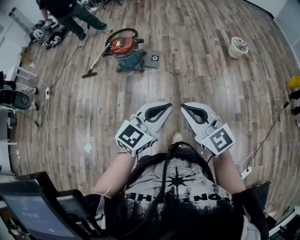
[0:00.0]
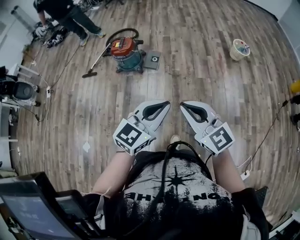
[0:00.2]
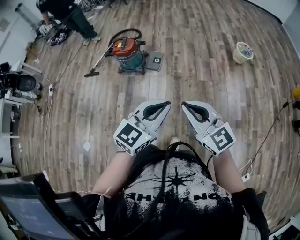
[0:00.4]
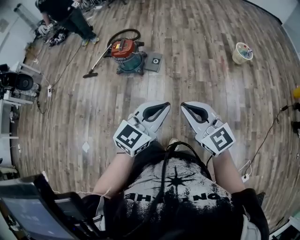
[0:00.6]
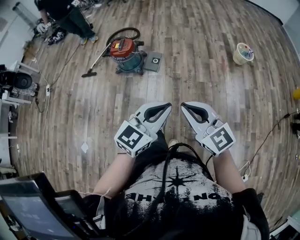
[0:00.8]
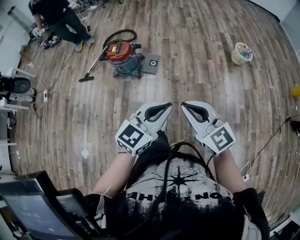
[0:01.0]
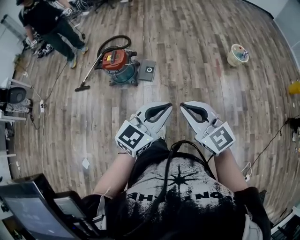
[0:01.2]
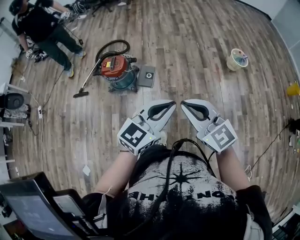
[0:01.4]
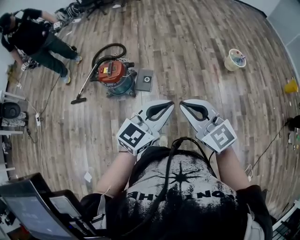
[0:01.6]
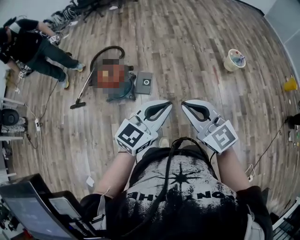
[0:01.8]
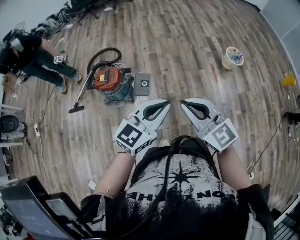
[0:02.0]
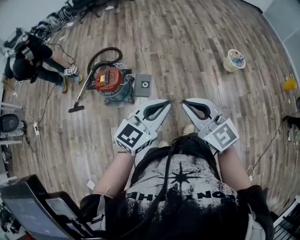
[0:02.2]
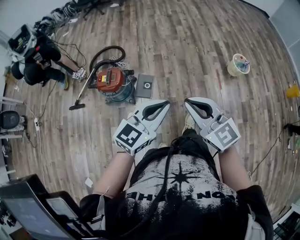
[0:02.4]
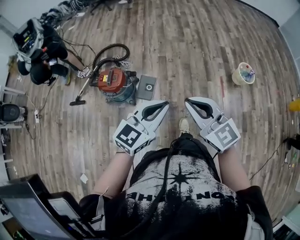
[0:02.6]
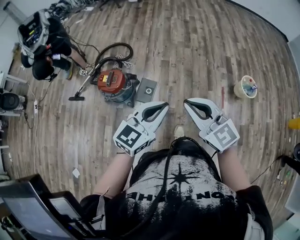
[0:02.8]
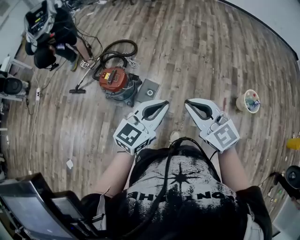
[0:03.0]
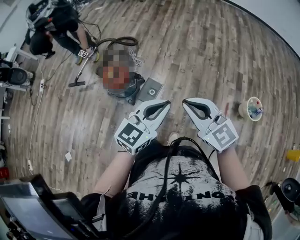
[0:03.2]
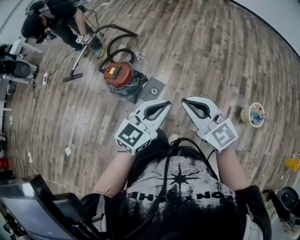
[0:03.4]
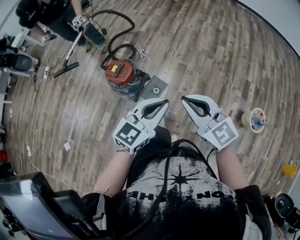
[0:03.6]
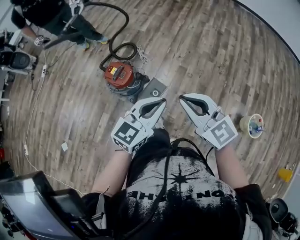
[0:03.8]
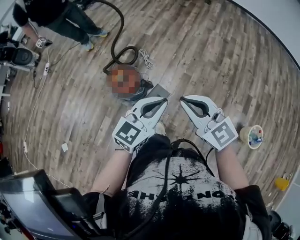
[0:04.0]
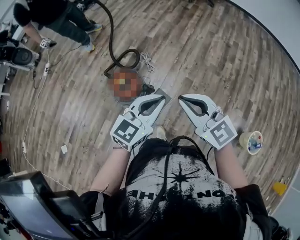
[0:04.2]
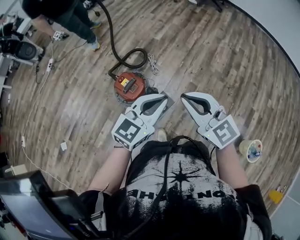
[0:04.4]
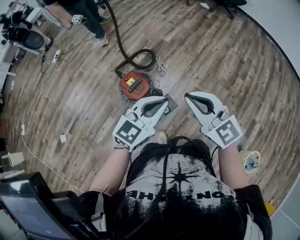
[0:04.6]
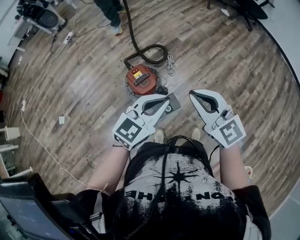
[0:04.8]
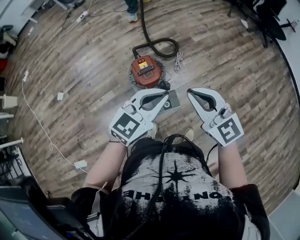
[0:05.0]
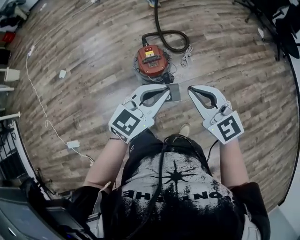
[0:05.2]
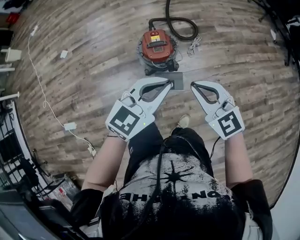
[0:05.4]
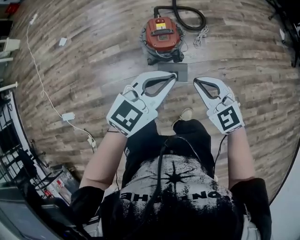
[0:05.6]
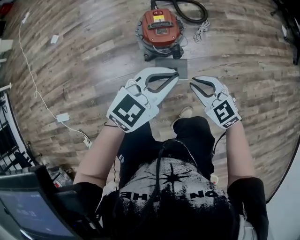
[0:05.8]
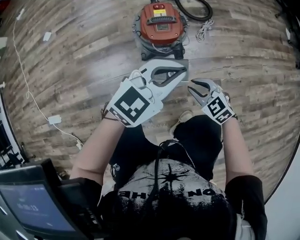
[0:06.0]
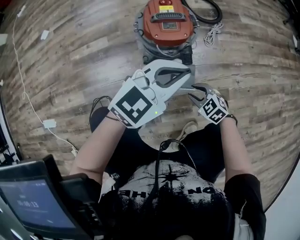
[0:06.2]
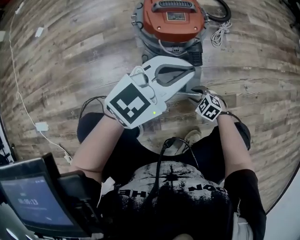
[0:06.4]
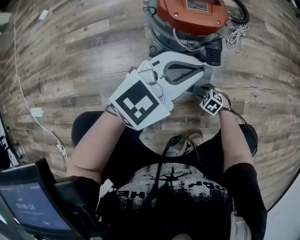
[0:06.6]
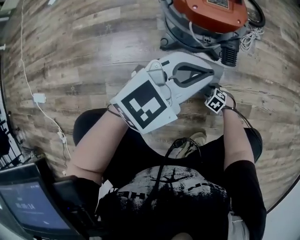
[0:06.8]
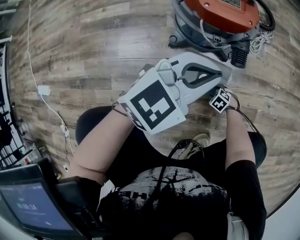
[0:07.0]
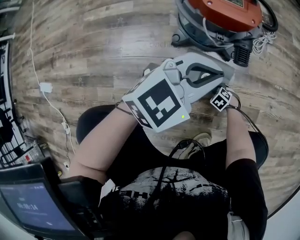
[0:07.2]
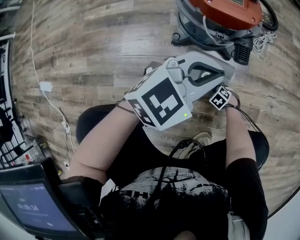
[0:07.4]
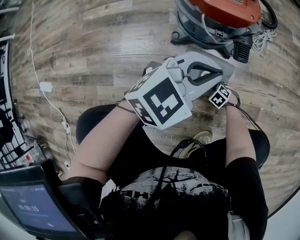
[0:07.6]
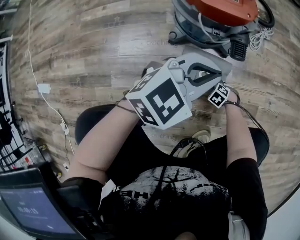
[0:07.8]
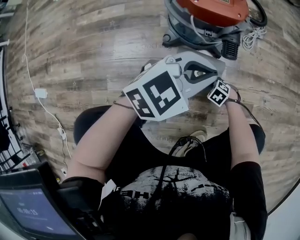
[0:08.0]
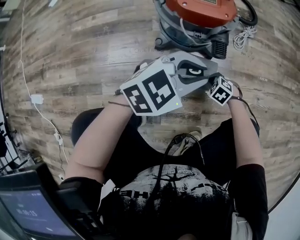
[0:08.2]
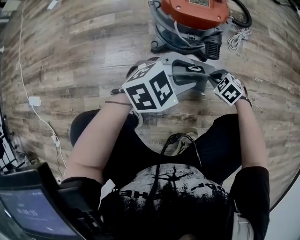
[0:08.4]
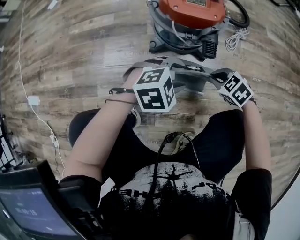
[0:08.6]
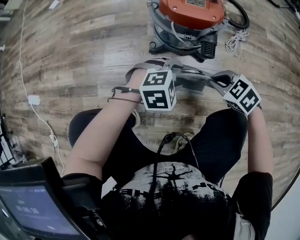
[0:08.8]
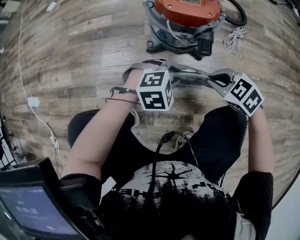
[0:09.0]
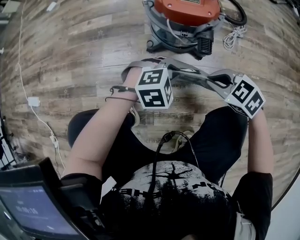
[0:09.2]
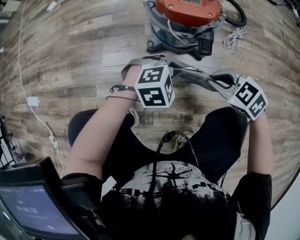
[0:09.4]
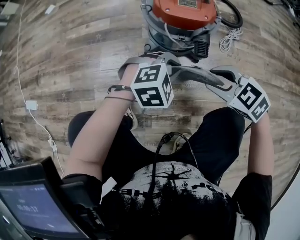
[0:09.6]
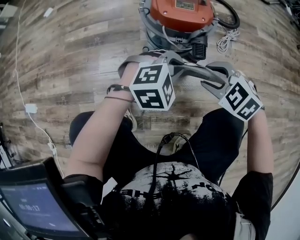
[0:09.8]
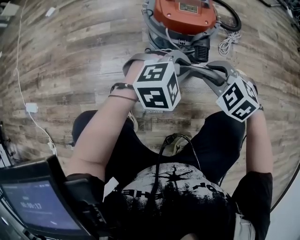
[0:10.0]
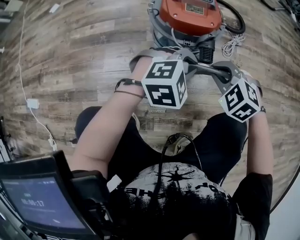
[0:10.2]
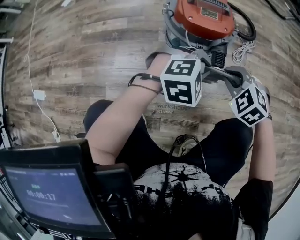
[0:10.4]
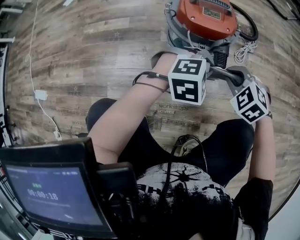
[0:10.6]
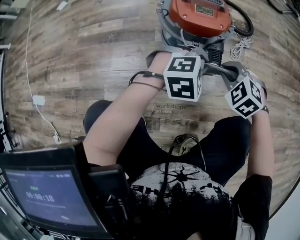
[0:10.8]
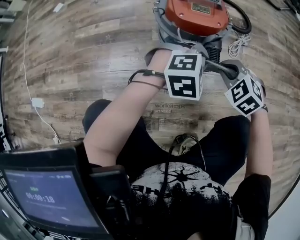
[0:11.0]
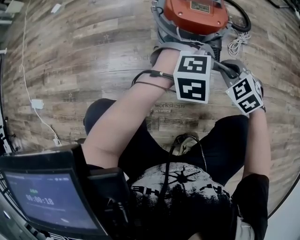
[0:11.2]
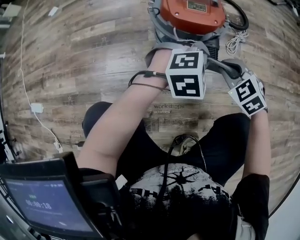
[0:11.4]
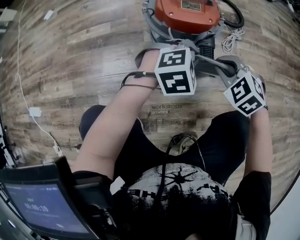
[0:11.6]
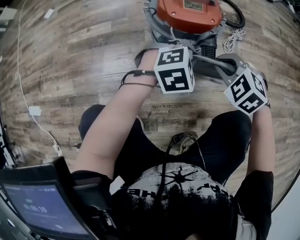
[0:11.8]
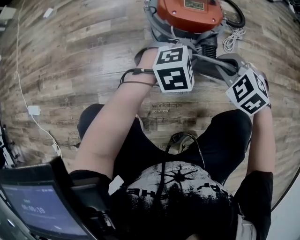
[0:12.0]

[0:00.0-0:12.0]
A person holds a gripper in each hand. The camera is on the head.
0:00.0 to 0:01.6: Both grippers move forward, approximately 30 cm.
0:01.6 to 0:03.0: Both grippers move forward, roughly 30 cm. The left gripper swivels some 20 degrees.
0:03.0 to 0:04.4: The grippers both shift forward by some 30 cm. The right gripper changes its angle by some 20 degrees.
0:04.4 to 0:06.0: The left gripper travels downward by some 25 cm, and swivels approximately 30 degrees. The right gripper heads downward, covering approximately 50 cm, points its fingers some 40 degrees further downward, and opens up.
0:06.0 to 0:07.6: The right gripper moves downward, approximately 50 cm, tilts its fingers roughly 40 degrees downward, and opens, then closes again. The left gripper travels downward by about 30 cm.
0:07.6 to 0:09.0: The left gripper shifts approximately 15 cm downward, tilts its fingers approximately 30 degrees downward, and opens, while the right gripper is displaced upward by about 35 cm, and turns by some 30 degrees.
0:09.0 to 0:10.4: The right gripper shifts by about 5 cm, swivels roughly 30 degrees, and opens and closes again; the left gripper heads upward, covering some 10 cm.
0:10.4 to 0:12.0: The left gripper ends up roughly 5 cm from where it was.

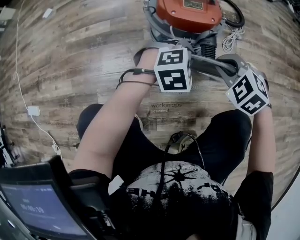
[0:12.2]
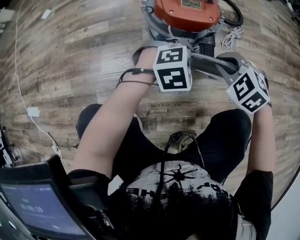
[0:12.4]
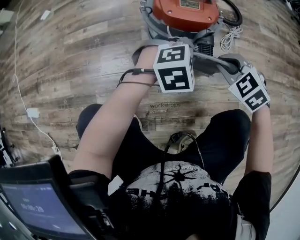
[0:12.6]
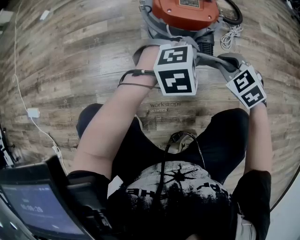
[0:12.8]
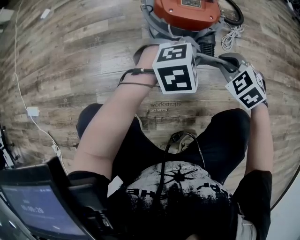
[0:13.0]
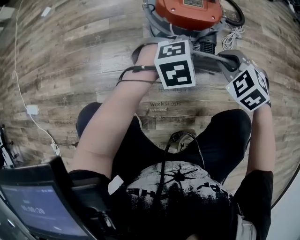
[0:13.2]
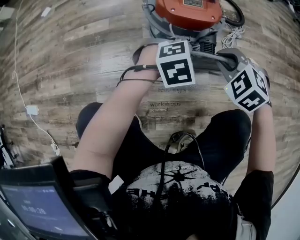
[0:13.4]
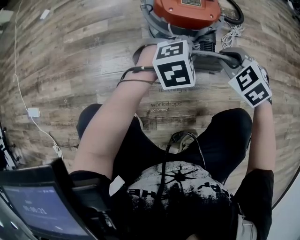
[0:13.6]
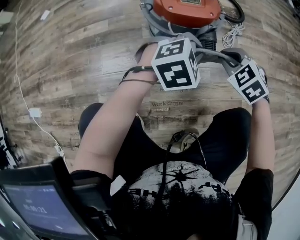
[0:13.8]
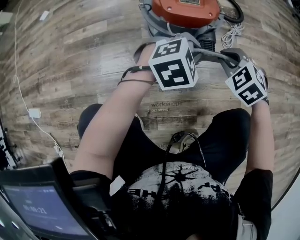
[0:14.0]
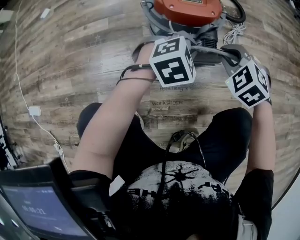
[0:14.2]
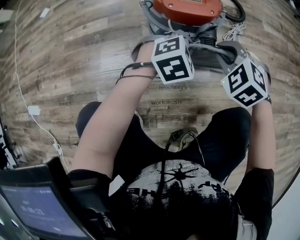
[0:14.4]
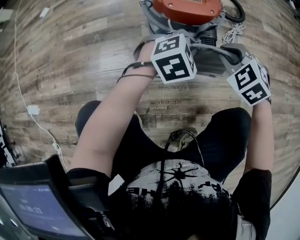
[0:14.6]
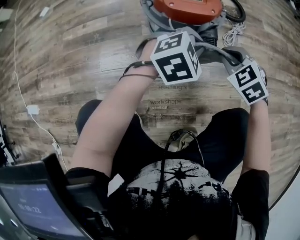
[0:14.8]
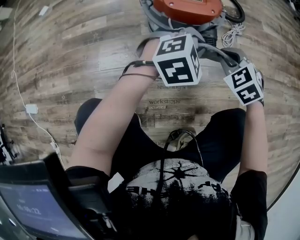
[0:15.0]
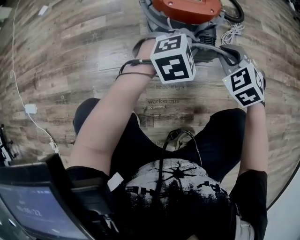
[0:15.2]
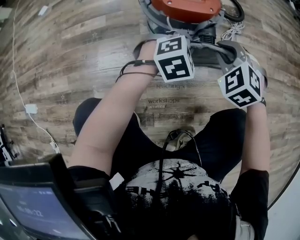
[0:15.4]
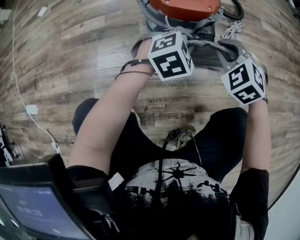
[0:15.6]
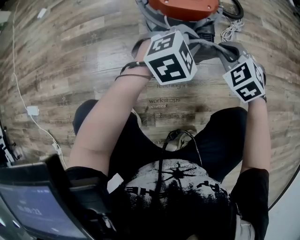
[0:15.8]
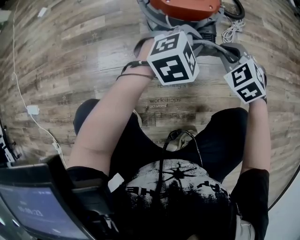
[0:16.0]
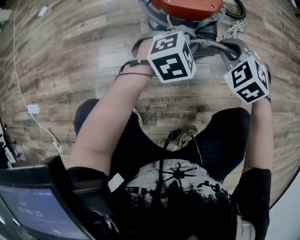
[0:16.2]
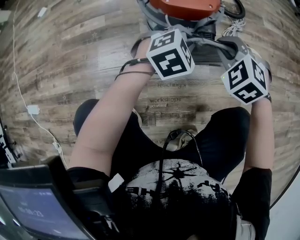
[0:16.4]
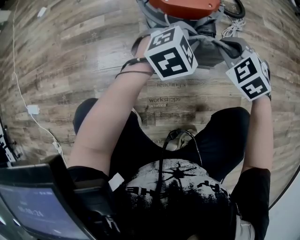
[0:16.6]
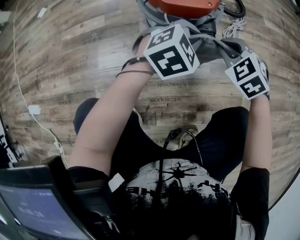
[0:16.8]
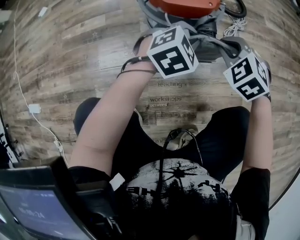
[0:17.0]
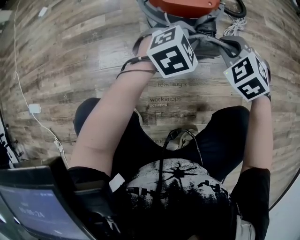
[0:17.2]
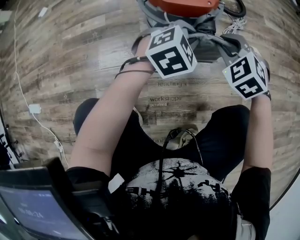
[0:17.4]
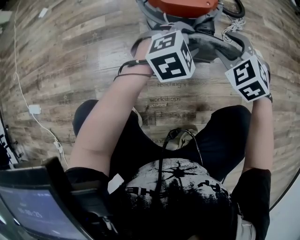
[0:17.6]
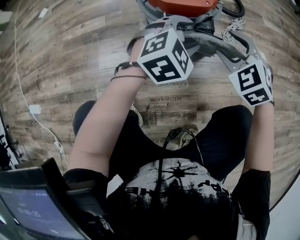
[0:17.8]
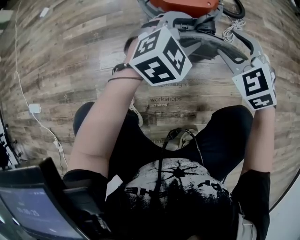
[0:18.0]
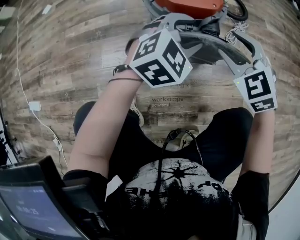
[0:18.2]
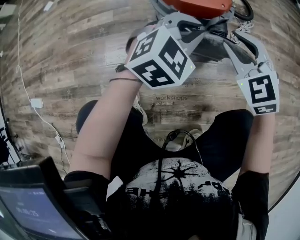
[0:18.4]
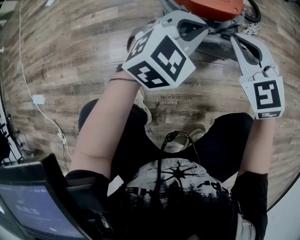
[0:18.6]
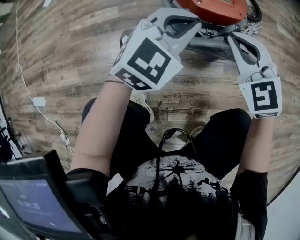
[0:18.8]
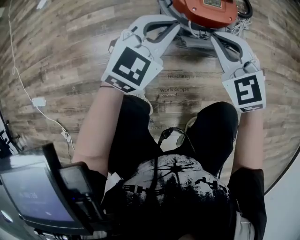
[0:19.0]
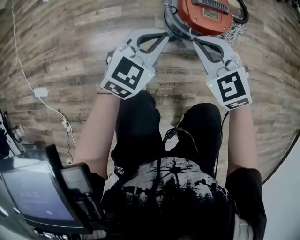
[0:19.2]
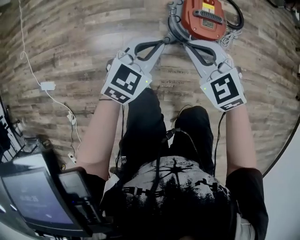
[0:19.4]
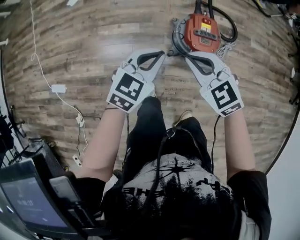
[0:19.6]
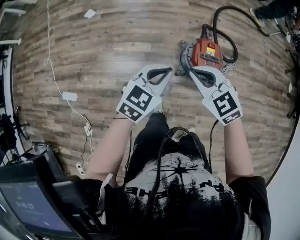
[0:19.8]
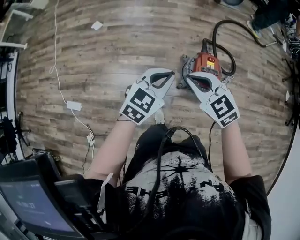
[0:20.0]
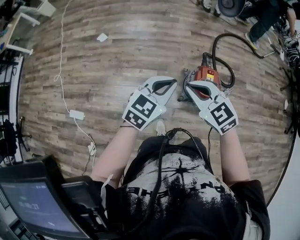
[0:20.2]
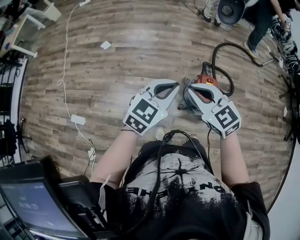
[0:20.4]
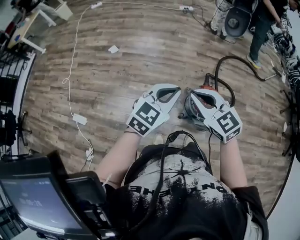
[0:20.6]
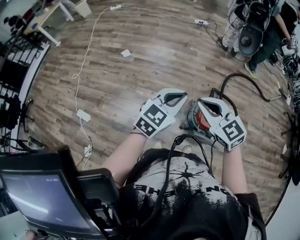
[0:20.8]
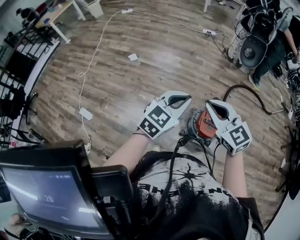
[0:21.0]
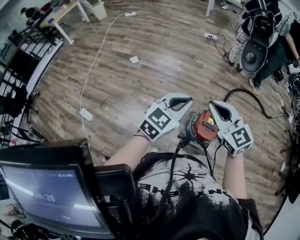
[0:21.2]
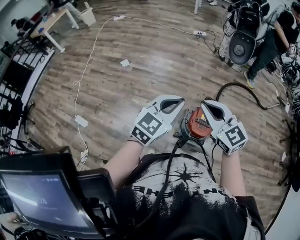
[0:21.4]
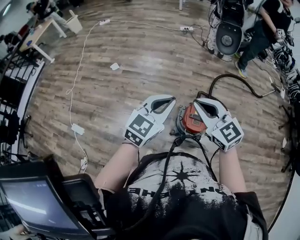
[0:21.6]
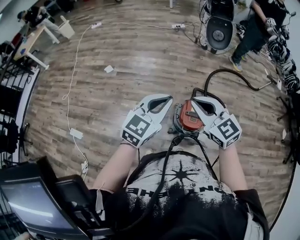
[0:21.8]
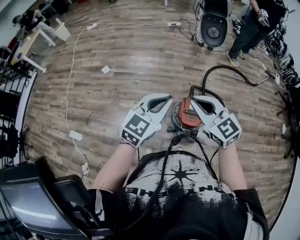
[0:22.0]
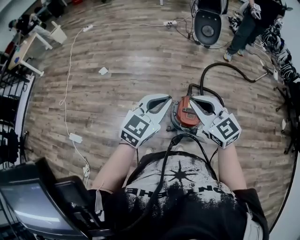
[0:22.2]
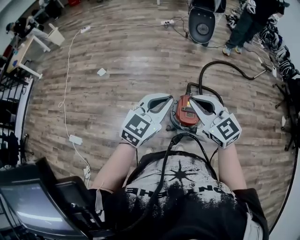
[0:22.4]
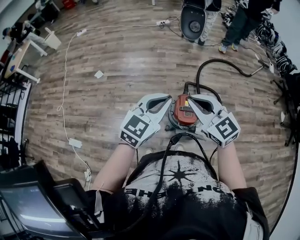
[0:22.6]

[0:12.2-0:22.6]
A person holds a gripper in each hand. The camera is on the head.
0:12.2 to 0:16.6: The grippers make only small movements.
0:16.6 to 0:18.2: Both grippers travel together upward, approximately 5 cm. The left gripper opens. The right gripper opens its fingers.
0:18.2 to 0:19.6: The two grippers go roughly 40 cm upward and to the left. The right gripper changes its angle by approximately 20 degrees, and closes its fingers. Meanwhile the left gripper turns by about 30 degrees, and closes.
0:19.6 to 0:21.2: The two grippers go about 25 cm upward. The right gripper changes its angle by roughly 30 degrees. The left gripper swivels about 20 degrees.
0:21.2 to 0:22.6: The grippers both shift to the right by about 10 cm.

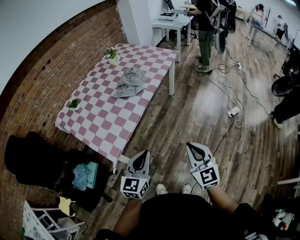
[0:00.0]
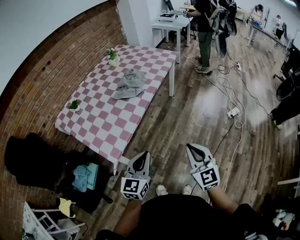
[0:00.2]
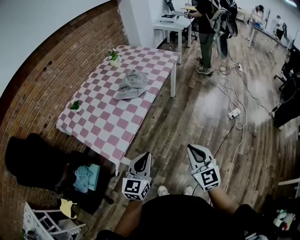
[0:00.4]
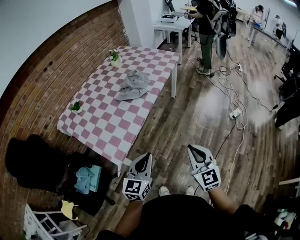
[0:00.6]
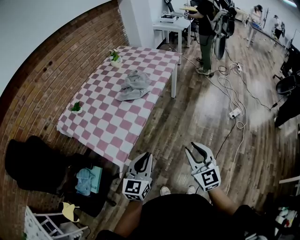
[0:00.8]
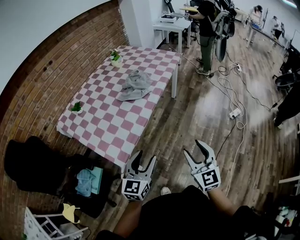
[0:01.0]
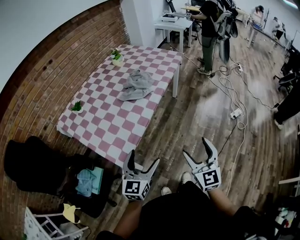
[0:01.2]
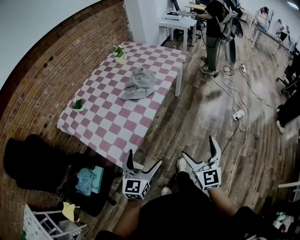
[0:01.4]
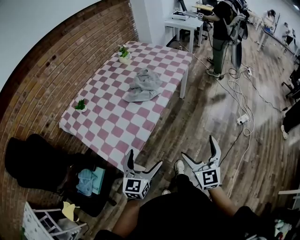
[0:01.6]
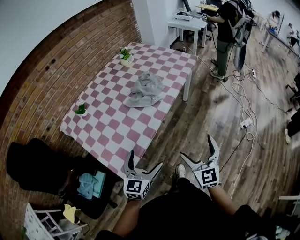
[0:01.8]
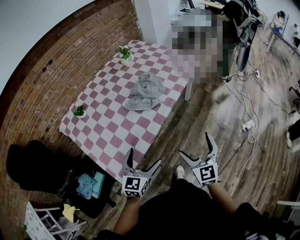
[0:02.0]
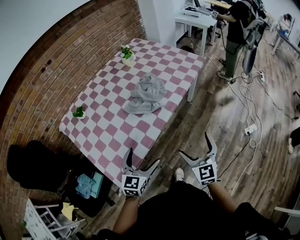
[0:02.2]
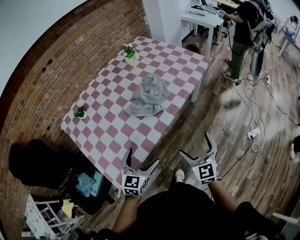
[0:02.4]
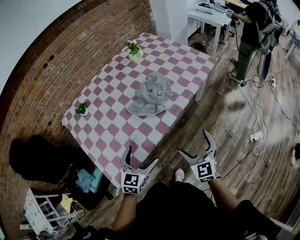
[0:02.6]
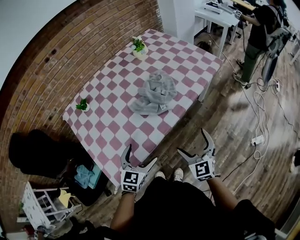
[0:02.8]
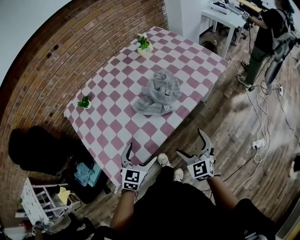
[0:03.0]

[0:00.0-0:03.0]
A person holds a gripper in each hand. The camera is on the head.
0:00.0 to 0:01.6: The right gripper heads forward and to the left, covering roughly 10 cm, and opens its fingers, while the left gripper shifts approximately 10 cm to the left and forward, and opens.
0:01.6 to 0:03.0: Both grippers move forward, some 25 cm. The right gripper rotates approximately 30 degrees. The left gripper swivels about 20 degrees.
